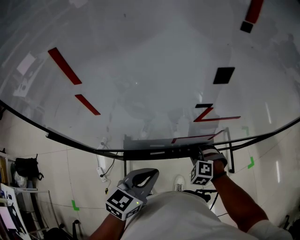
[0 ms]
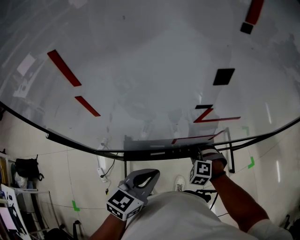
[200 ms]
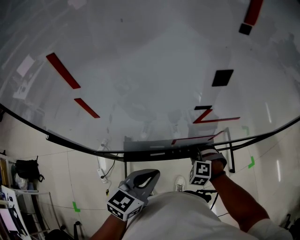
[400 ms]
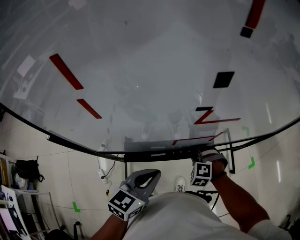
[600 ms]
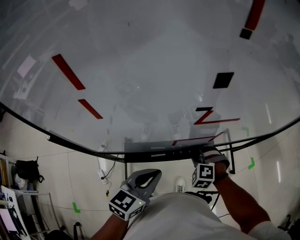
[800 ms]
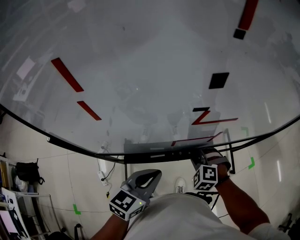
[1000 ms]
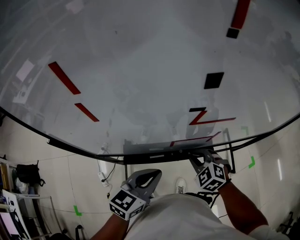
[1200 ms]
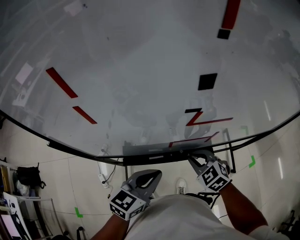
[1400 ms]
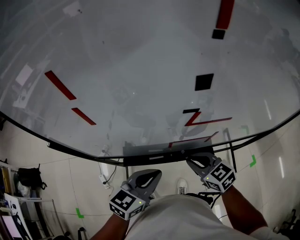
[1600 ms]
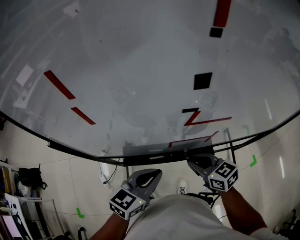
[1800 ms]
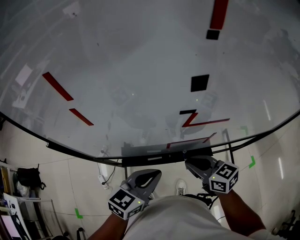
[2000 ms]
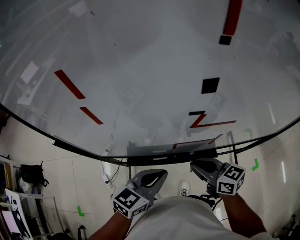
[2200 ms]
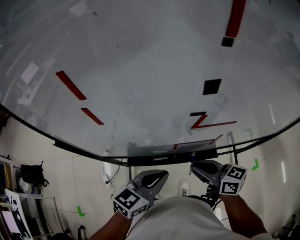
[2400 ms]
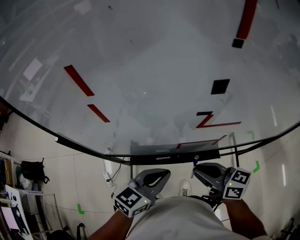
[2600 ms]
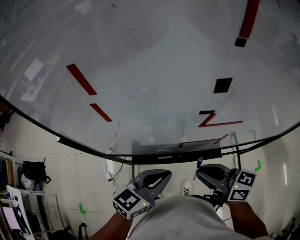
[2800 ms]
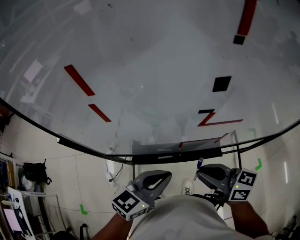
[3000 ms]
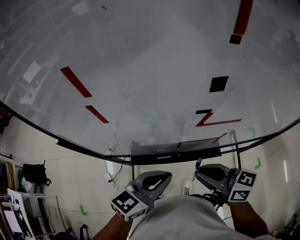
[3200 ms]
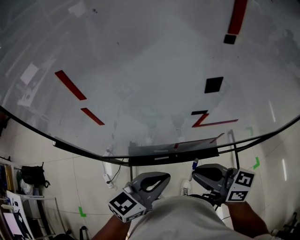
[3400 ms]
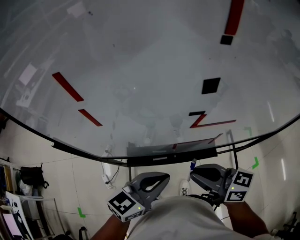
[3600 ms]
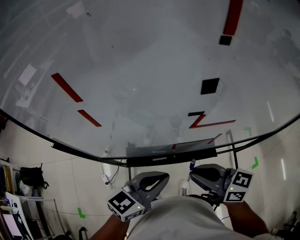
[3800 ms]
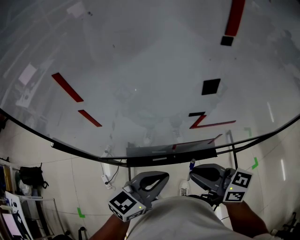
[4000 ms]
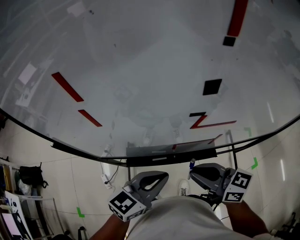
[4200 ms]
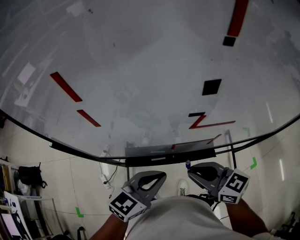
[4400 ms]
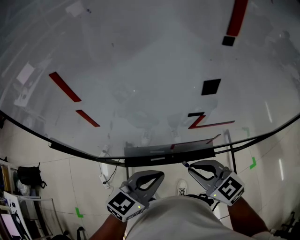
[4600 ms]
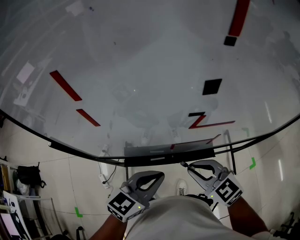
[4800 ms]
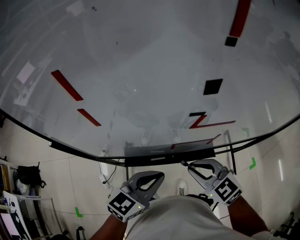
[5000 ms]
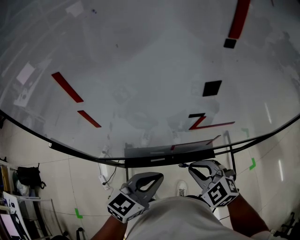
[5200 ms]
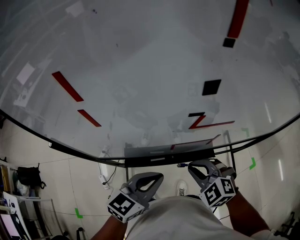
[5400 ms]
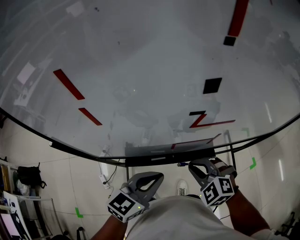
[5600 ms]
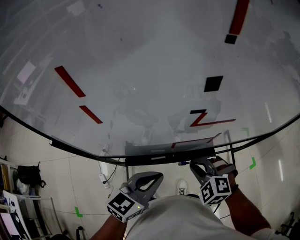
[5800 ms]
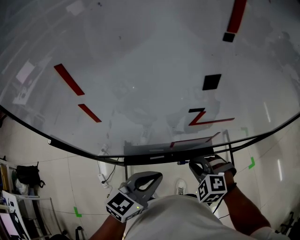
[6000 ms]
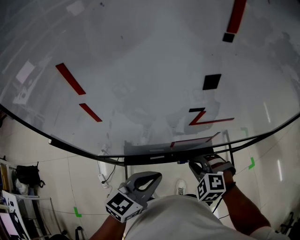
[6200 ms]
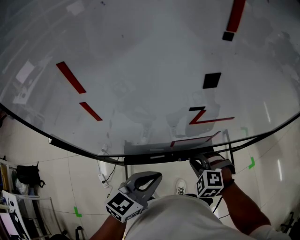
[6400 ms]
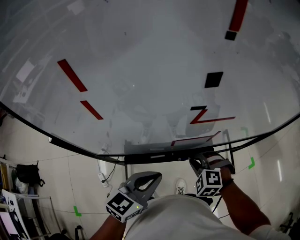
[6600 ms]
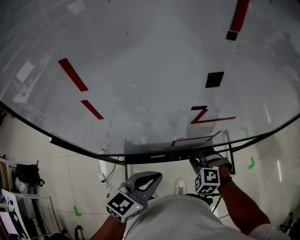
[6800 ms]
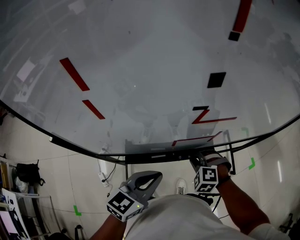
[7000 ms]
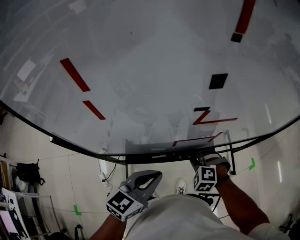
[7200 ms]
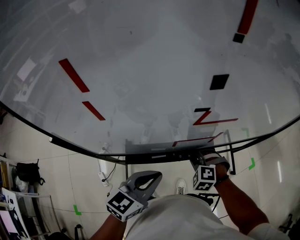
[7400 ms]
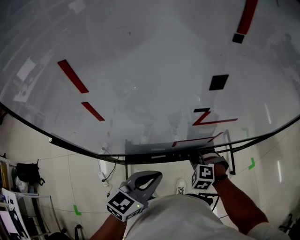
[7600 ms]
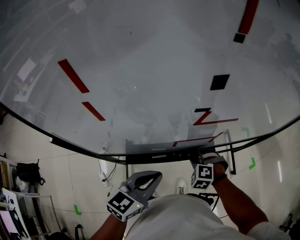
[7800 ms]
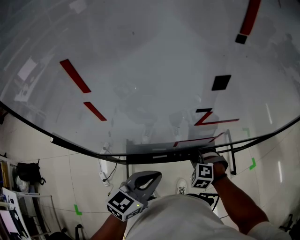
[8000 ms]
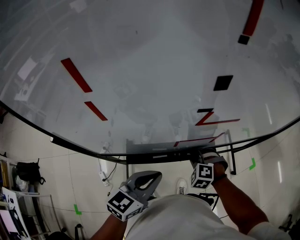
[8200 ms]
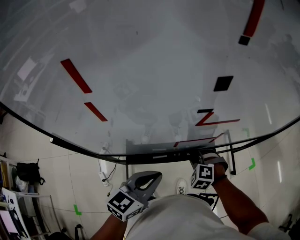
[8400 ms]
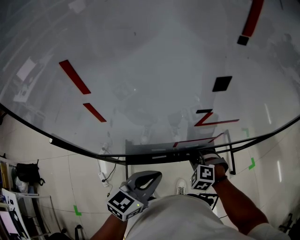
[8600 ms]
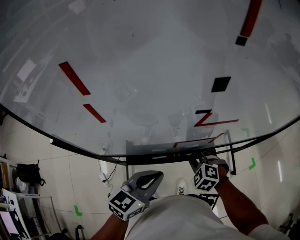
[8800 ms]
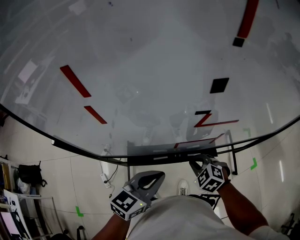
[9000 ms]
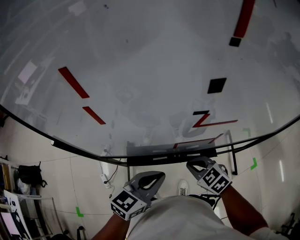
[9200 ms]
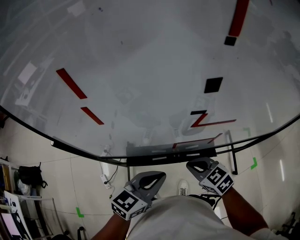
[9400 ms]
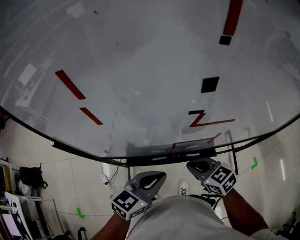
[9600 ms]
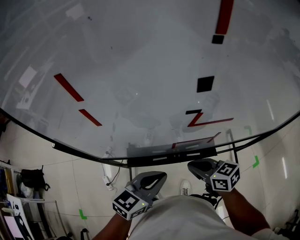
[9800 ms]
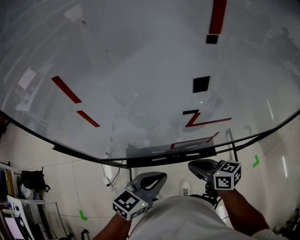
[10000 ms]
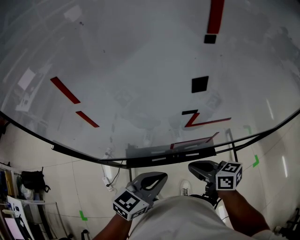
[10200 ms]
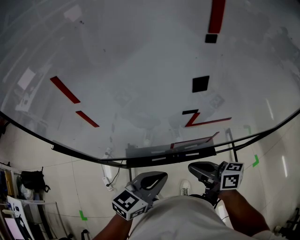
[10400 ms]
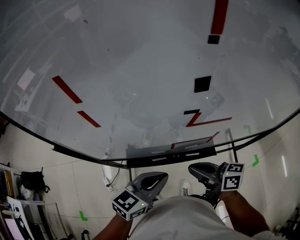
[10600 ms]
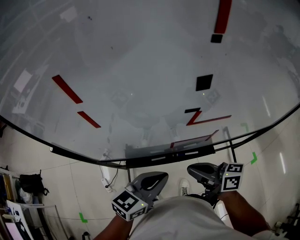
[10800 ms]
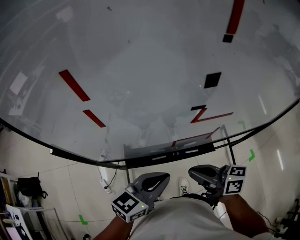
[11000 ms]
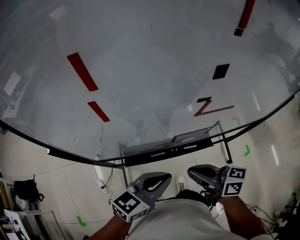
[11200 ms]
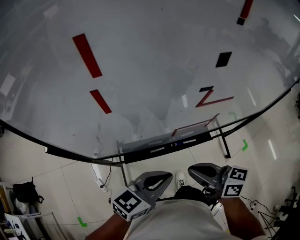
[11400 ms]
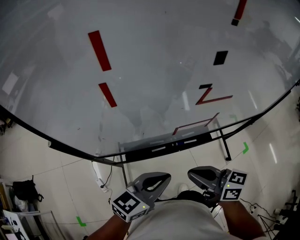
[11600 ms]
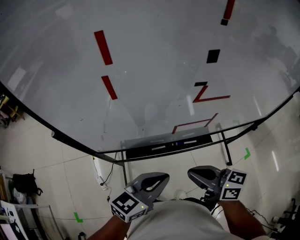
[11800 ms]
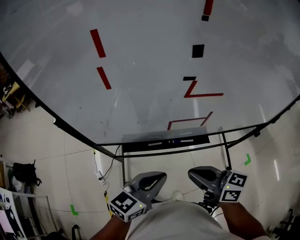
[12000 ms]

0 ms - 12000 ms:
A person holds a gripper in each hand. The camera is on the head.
0 ms - 1600 ms: The right gripper heads upward, covering some 10 cm, and rotates around the line of its fingers by some 50 degrees, clockwise from behind.
1600 ms - 3000 ms: The right gripper goes some 10 cm upward, and rotates approximately 30 degrees.
3000 ms - 4400 ms: The grippers move only a little.
4400 ms - 6000 ms: The right gripper moves downward, some 10 cm, and angles its fingers downward, by roughly 40 degrees.
6000 ms - 7600 ms: The right gripper travels downward by roughly 10 cm.
7600 ms - 9000 ms: The right gripper turns by some 30 degrees.
9000 ms - 10400 ms: The right gripper goes some 10 cm upward, and tilts its fingers some 40 degrees upward.
10400 ms - 12000 ms: The grippers both shift backward by approximately 10 cm.

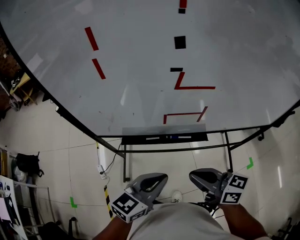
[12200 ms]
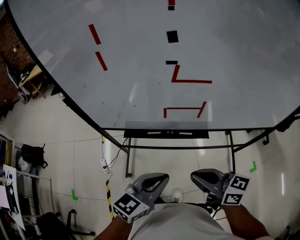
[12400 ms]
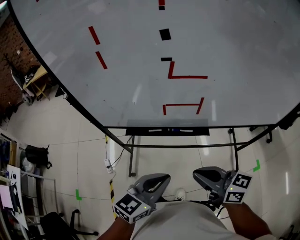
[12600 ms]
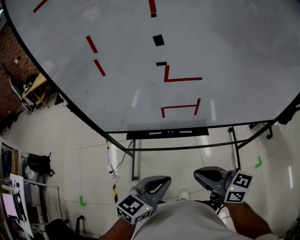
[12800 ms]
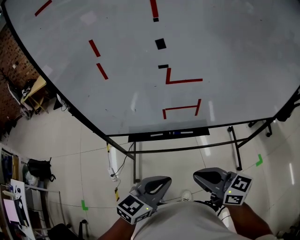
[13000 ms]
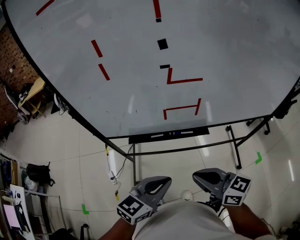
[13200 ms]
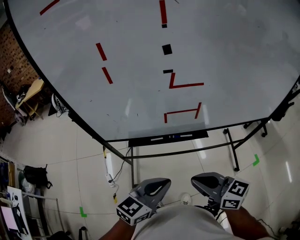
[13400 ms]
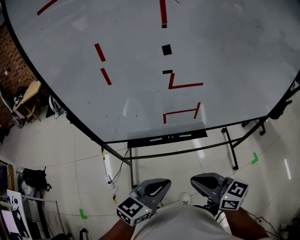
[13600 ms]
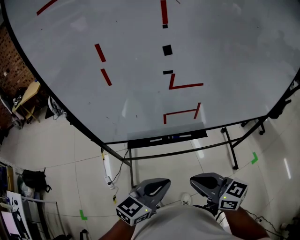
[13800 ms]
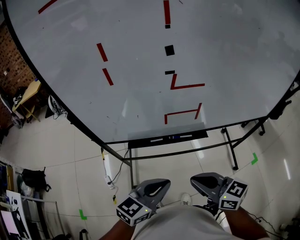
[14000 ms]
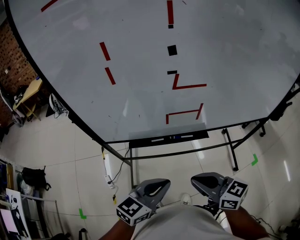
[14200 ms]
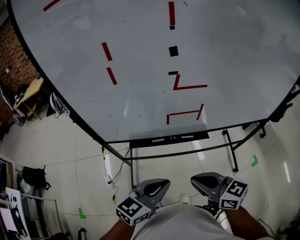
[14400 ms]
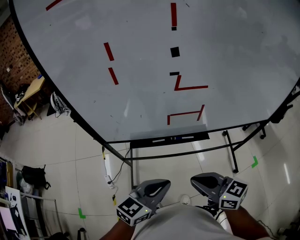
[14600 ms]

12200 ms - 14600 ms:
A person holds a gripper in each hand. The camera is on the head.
12200 ms - 13400 ms: Both grippers travel together backward, some 5 cm.
13400 ms - 14600 ms: The grippers move only a little.

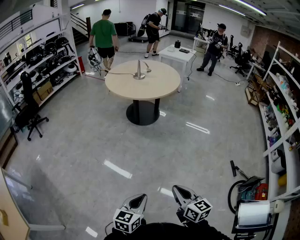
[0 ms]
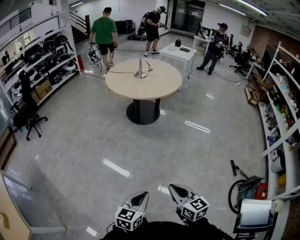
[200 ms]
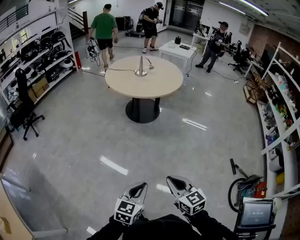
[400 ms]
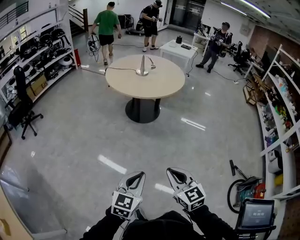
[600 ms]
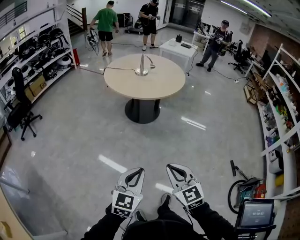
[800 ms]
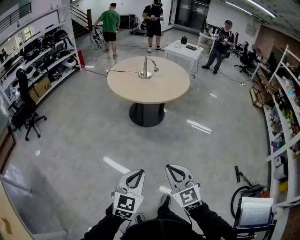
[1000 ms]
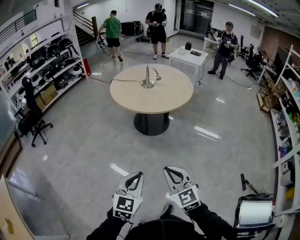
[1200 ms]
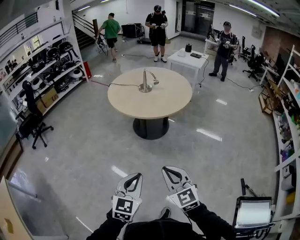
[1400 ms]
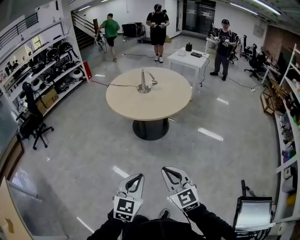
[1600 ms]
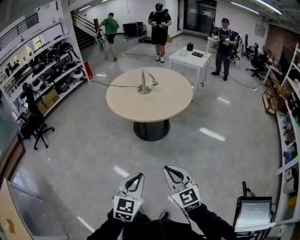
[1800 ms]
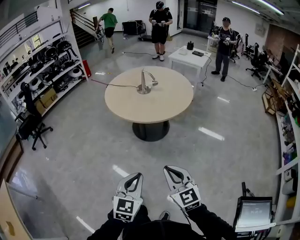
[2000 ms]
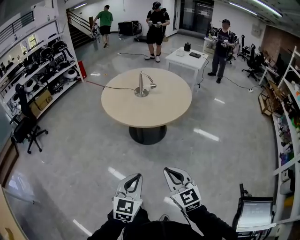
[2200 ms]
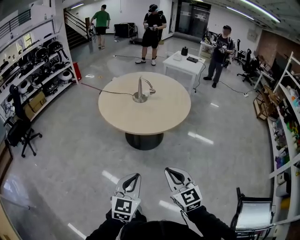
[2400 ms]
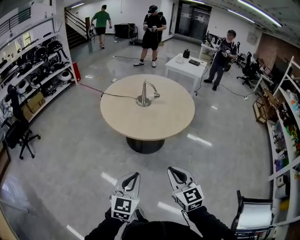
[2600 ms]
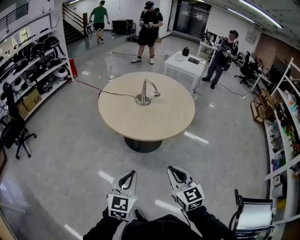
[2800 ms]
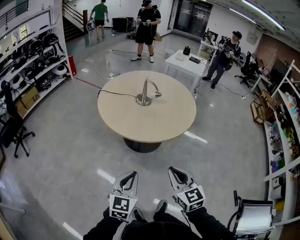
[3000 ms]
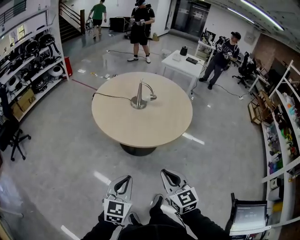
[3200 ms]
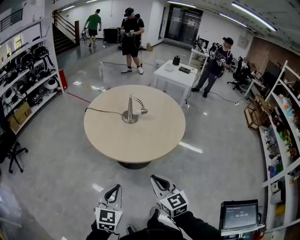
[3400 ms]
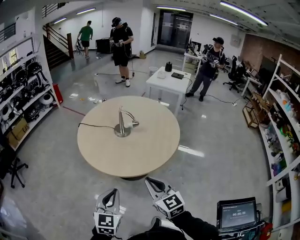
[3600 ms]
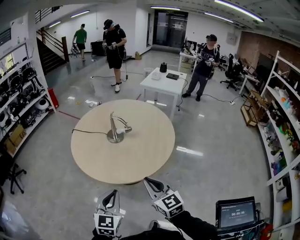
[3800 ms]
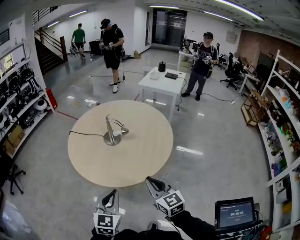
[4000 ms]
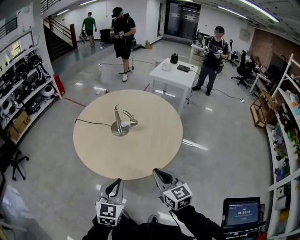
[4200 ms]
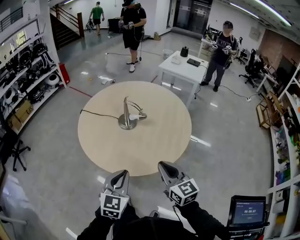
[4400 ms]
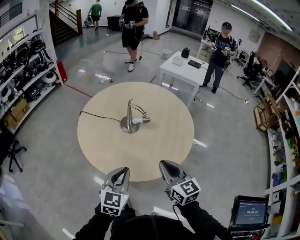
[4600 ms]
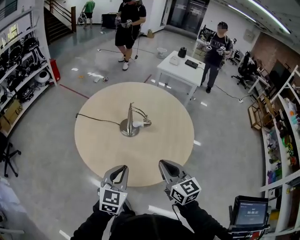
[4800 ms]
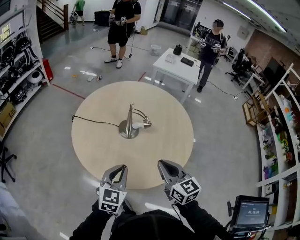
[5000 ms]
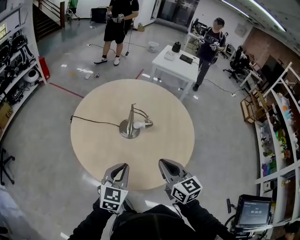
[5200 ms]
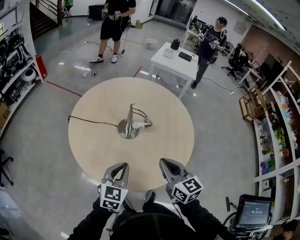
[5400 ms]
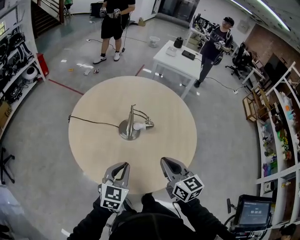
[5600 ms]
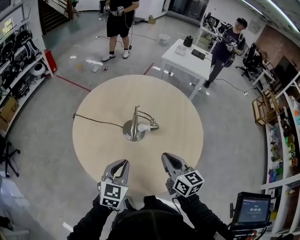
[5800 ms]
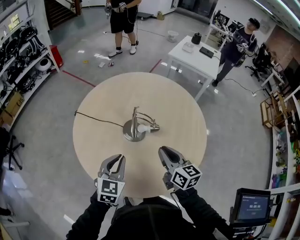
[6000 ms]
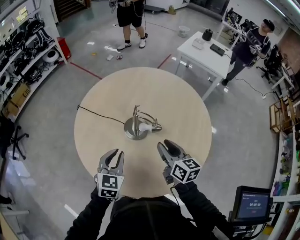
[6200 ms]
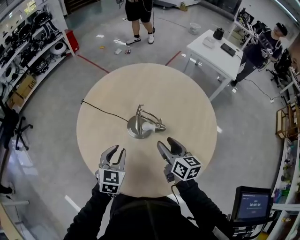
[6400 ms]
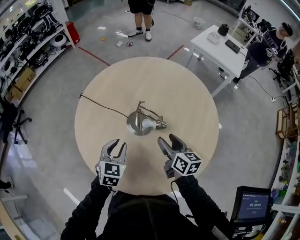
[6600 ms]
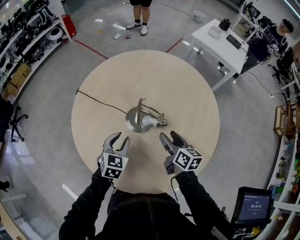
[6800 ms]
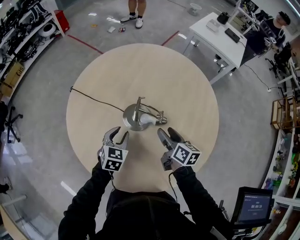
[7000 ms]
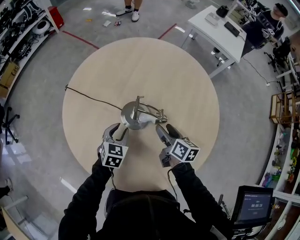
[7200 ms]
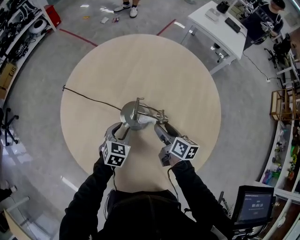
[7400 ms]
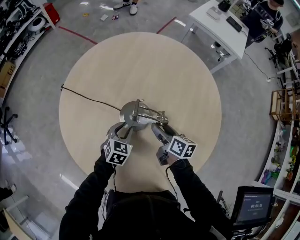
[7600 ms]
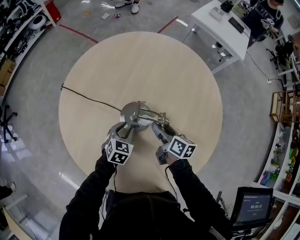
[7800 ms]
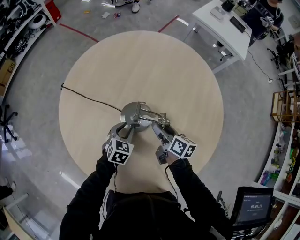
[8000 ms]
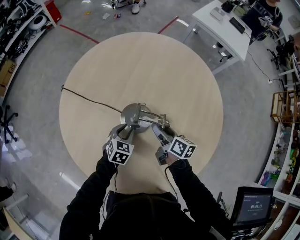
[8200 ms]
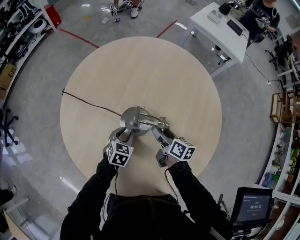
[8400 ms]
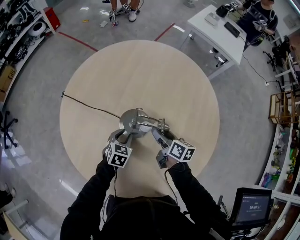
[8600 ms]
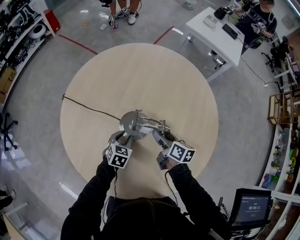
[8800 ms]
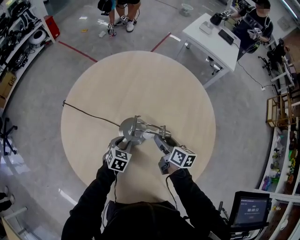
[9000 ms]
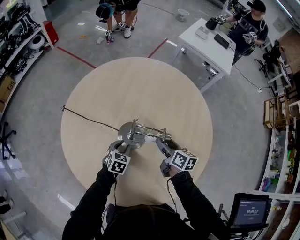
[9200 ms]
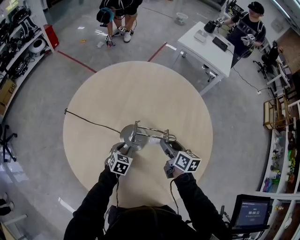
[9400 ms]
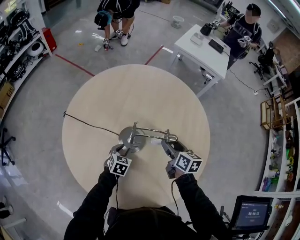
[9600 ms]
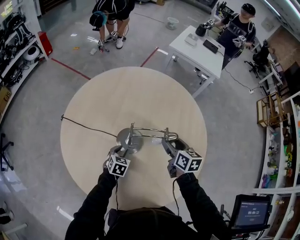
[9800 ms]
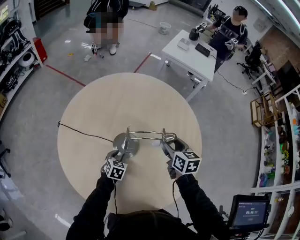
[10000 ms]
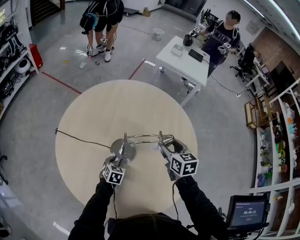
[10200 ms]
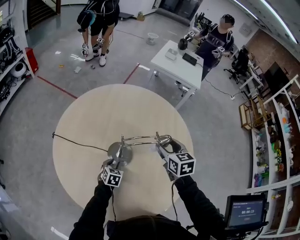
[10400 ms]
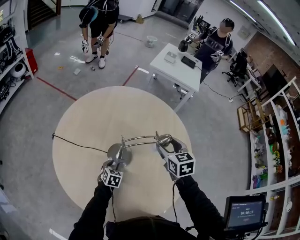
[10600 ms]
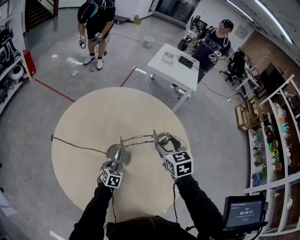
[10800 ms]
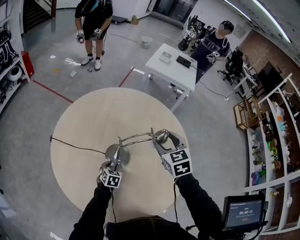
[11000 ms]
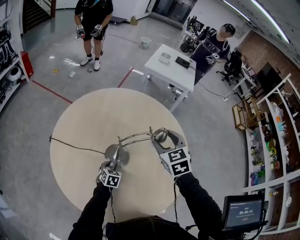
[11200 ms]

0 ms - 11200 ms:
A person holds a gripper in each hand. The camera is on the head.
0 ms - 1600 ms: The grippers both shift forward by about 35 cm. The left gripper turns by approximately 30 degrees. The right gripper swivels roughly 40 degrees.
1600 ms - 3200 ms: The grippers both shift forward by some 30 cm.
3200 ms - 4800 ms: The grippers both shift forward by roughly 35 cm.
4800 ms - 6400 ms: The grippers both shift forward and downward by about 25 cm. The left gripper turns by approximately 20 degrees, while the right gripper changes its angle by about 20 degrees, and opens its fingers.
6400 ms - 8000 ms: The two grippers go some 20 cm downward and forward. The right gripper swivels approximately 20 degrees. Meanwhile the left gripper changes its angle by roughly 20 degrees.
8000 ms - 9600 ms: The right gripper goes approximately 10 cm upward and to the right.
9600 ms - 11200 ms: The right gripper shifts approximately 15 cm upward, and rotates around the line of its fingers by some 50 degrees, counterclockwise from behind.
